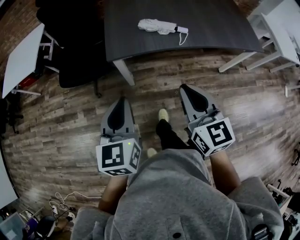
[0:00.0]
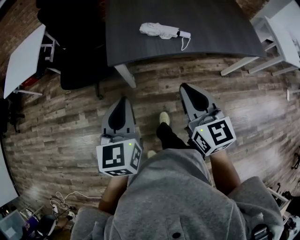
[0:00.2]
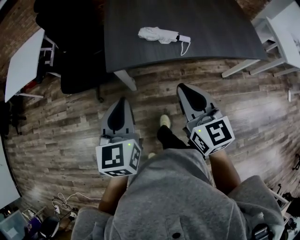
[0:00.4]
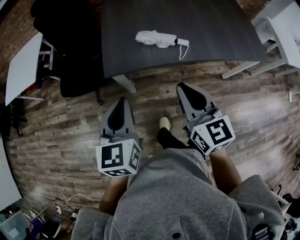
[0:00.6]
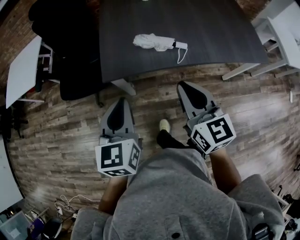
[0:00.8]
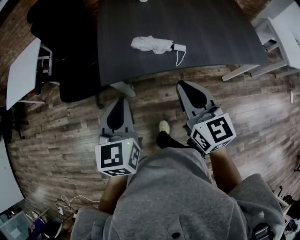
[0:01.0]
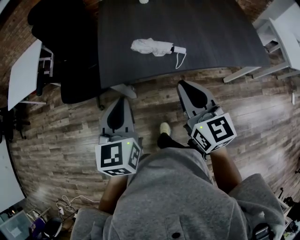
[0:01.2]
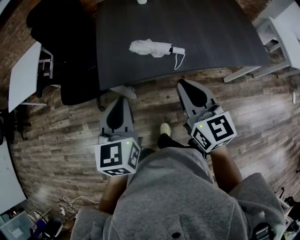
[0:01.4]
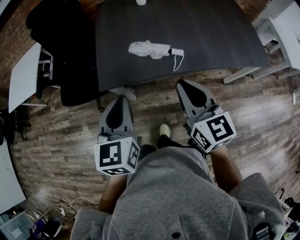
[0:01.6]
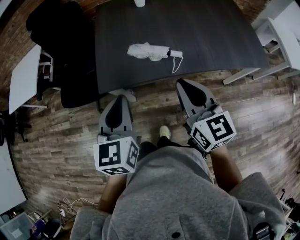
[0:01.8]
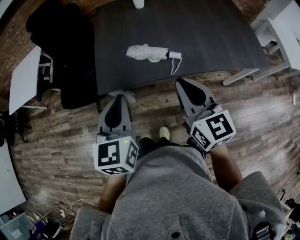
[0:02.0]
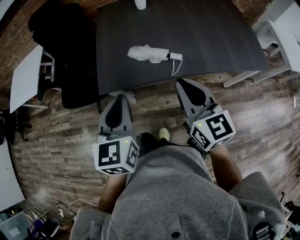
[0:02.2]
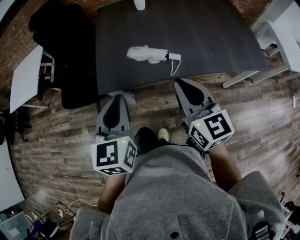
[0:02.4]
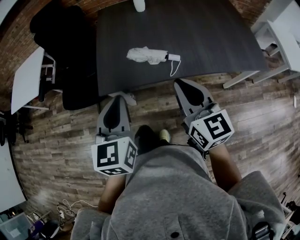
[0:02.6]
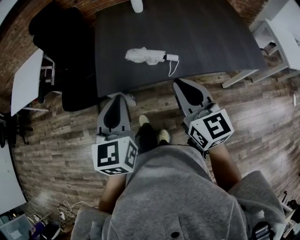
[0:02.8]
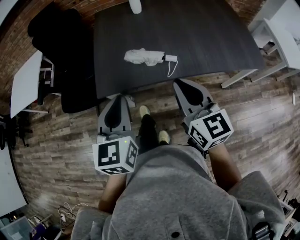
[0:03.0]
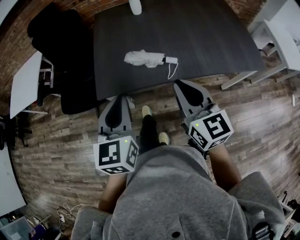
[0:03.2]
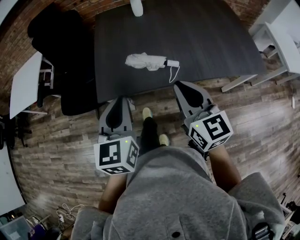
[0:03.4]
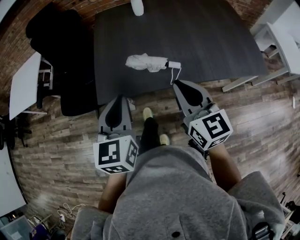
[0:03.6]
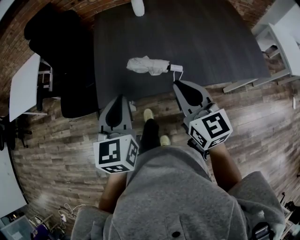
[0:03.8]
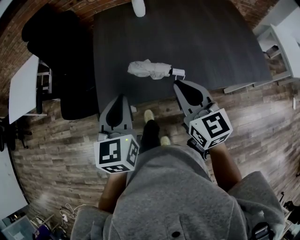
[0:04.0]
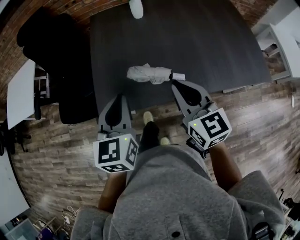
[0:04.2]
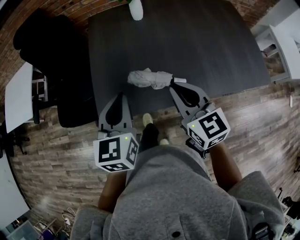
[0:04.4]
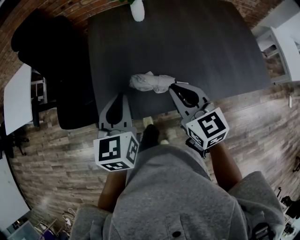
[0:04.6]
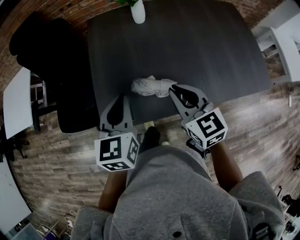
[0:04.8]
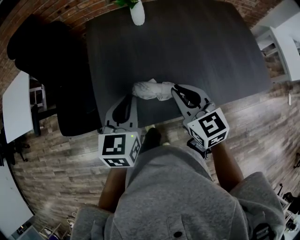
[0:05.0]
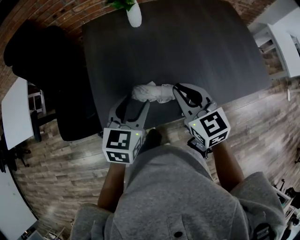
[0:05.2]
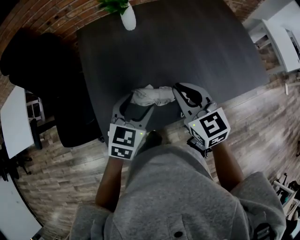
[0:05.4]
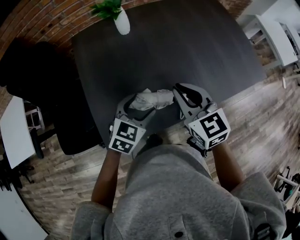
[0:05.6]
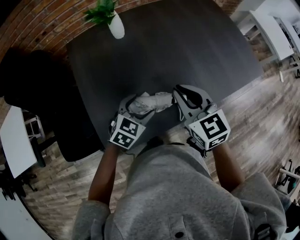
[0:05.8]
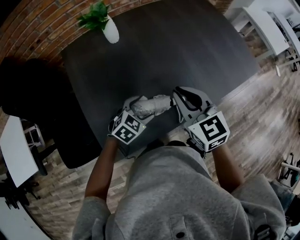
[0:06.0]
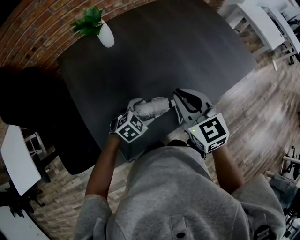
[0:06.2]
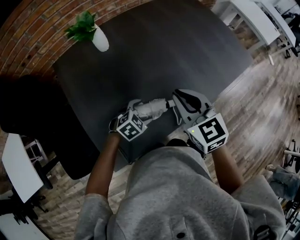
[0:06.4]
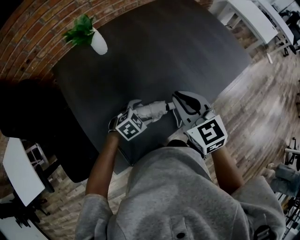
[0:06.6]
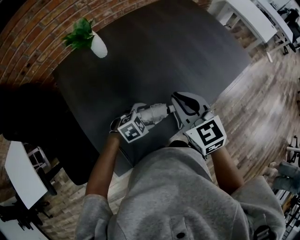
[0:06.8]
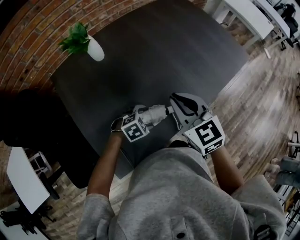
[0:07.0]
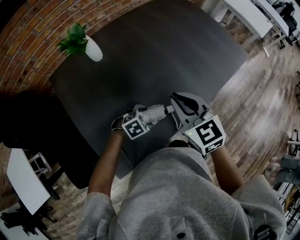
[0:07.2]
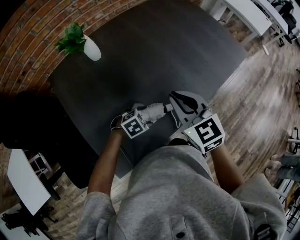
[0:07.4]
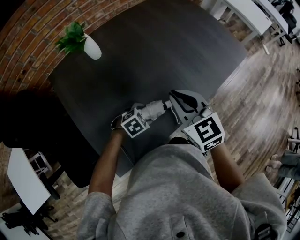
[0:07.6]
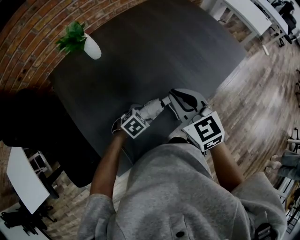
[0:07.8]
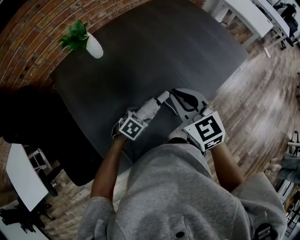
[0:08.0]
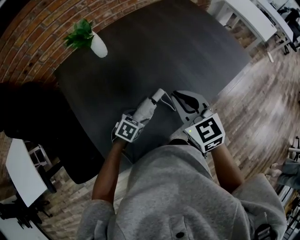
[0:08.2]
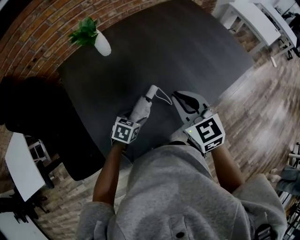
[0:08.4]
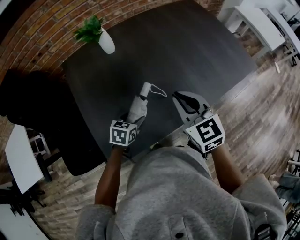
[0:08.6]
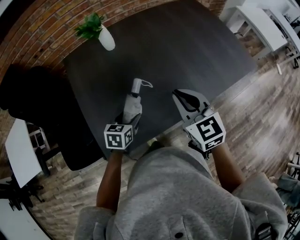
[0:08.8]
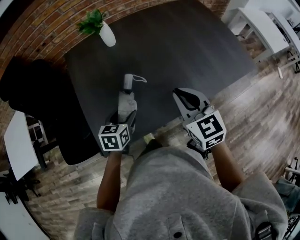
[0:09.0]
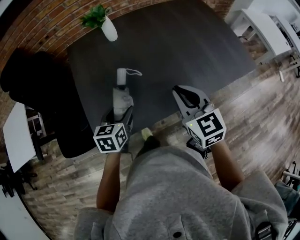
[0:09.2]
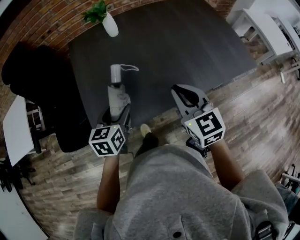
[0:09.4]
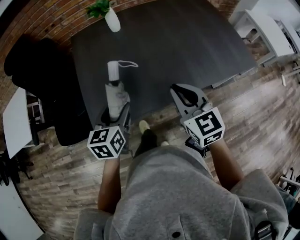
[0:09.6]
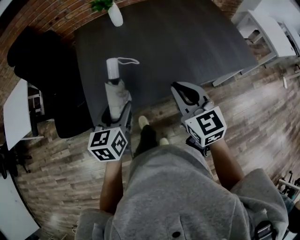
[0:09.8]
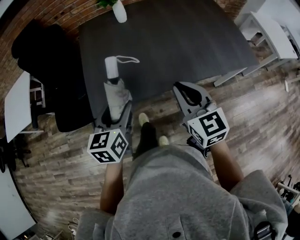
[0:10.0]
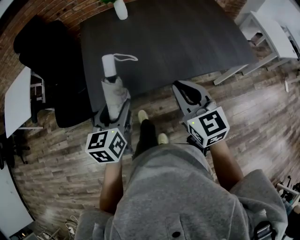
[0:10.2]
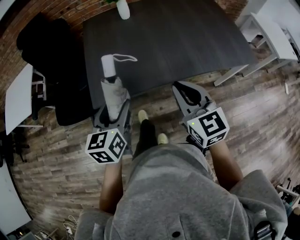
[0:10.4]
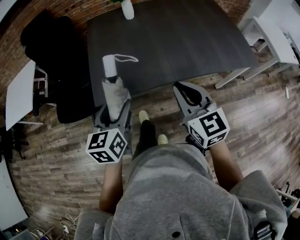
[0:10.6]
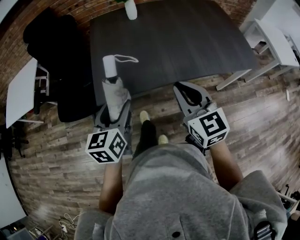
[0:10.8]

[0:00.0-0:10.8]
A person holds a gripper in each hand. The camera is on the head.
0.0 to 1.6 s: The grippers both shift forward and to the right by some 20 cm.
1.6 to 3.0 s: The grippers make only small movements.
3.0 to 4.6 s: The grippers both shift forward by some 20 cm.
4.6 to 6.2 s: The right gripper moves about 10 cm, and rotates roughly 20 degrees, while the left gripper heads downward, covering some 25 cm, changes its angle by about 80 degrees, and opens its fingers.
7.8 to 9.2 s: The left gripper heads upward, covering approximately 15 cm, and changes its angle by about 70 degrees. Meanwhile the right gripper shifts by about 10 cm.
9.2 to 10.8 s: The right gripper moves backward, roughly 20 cm. The left gripper travels backward and upward by about 25 cm, and rotates approximately 20 degrees.

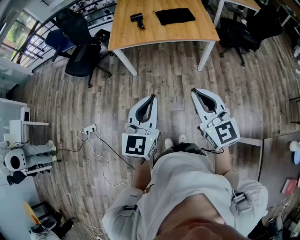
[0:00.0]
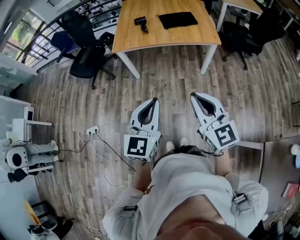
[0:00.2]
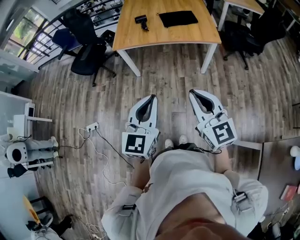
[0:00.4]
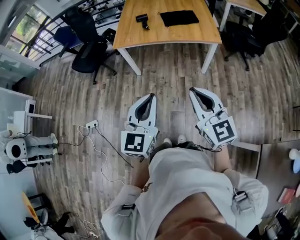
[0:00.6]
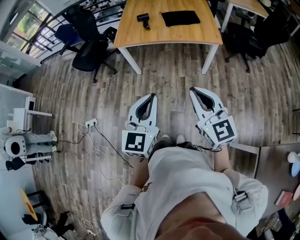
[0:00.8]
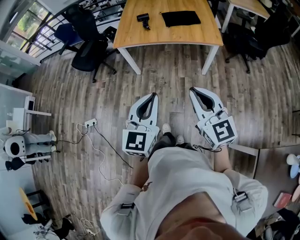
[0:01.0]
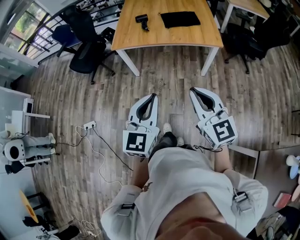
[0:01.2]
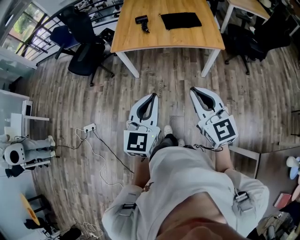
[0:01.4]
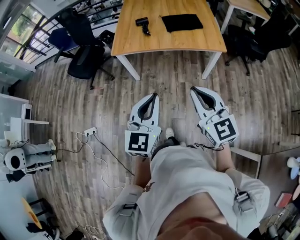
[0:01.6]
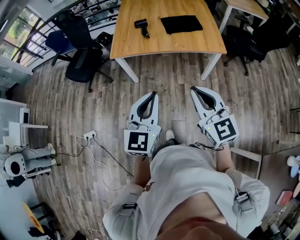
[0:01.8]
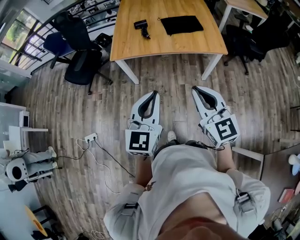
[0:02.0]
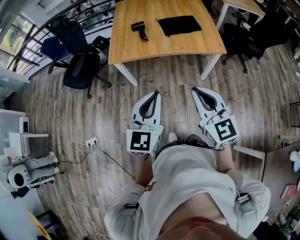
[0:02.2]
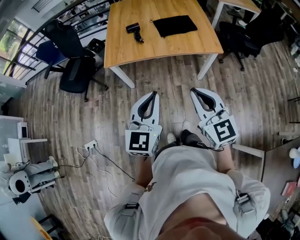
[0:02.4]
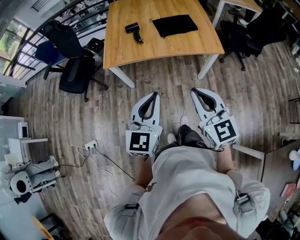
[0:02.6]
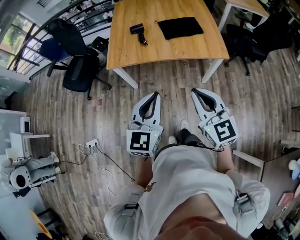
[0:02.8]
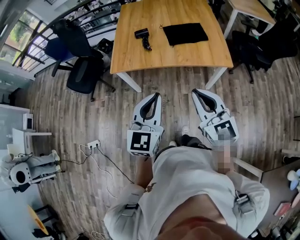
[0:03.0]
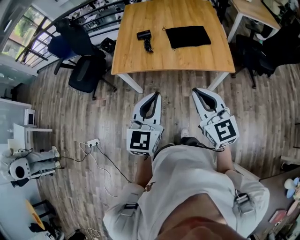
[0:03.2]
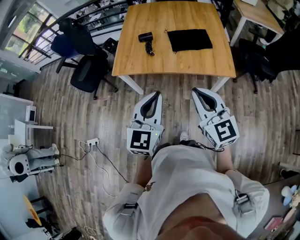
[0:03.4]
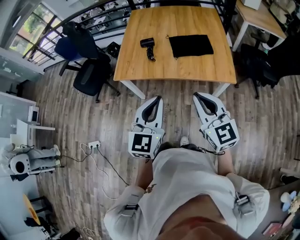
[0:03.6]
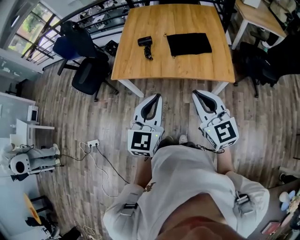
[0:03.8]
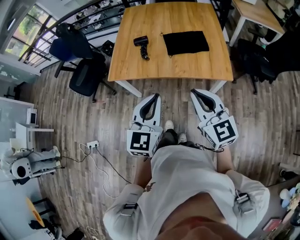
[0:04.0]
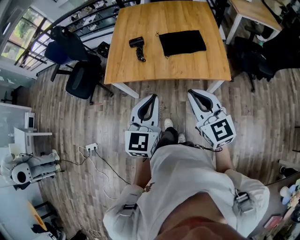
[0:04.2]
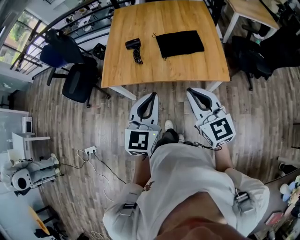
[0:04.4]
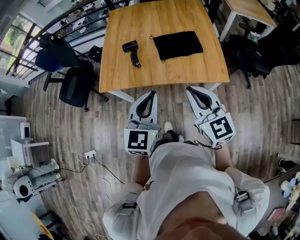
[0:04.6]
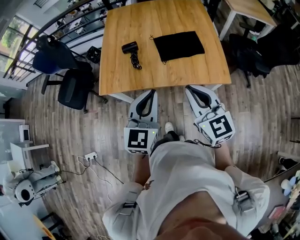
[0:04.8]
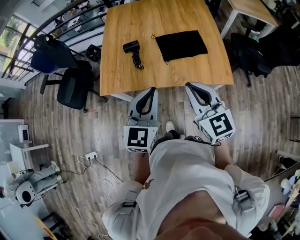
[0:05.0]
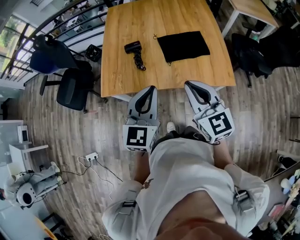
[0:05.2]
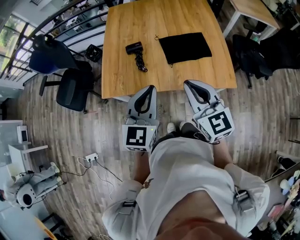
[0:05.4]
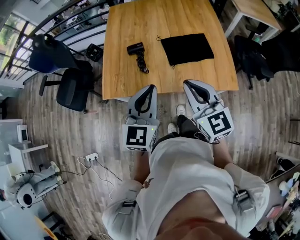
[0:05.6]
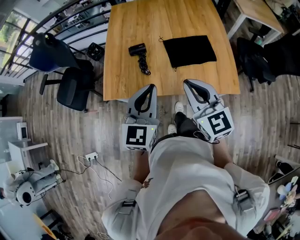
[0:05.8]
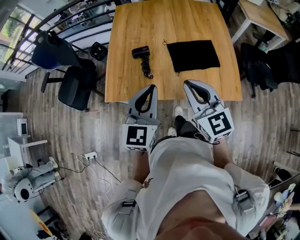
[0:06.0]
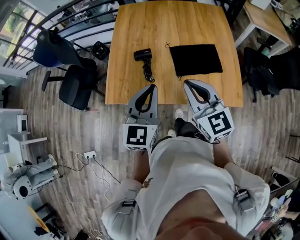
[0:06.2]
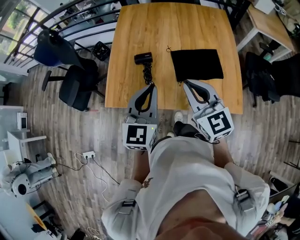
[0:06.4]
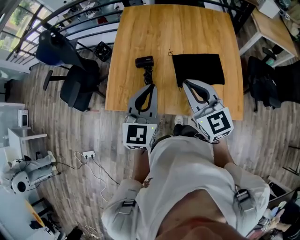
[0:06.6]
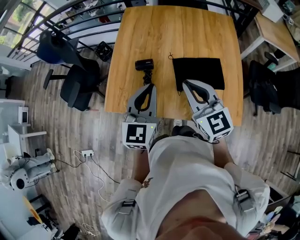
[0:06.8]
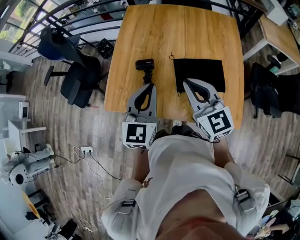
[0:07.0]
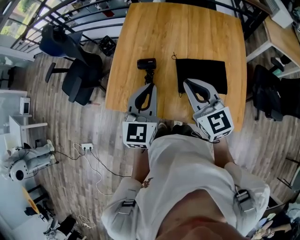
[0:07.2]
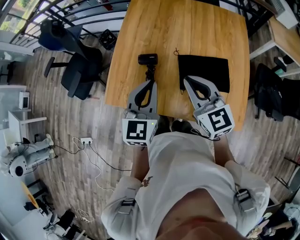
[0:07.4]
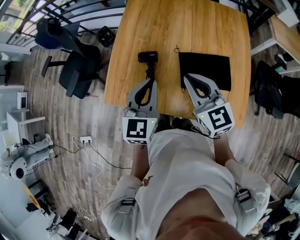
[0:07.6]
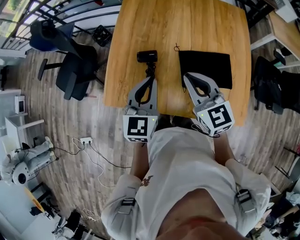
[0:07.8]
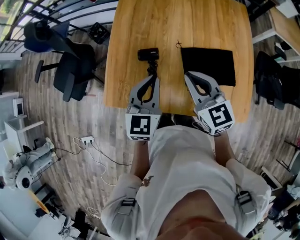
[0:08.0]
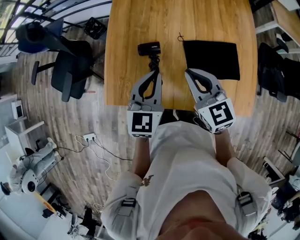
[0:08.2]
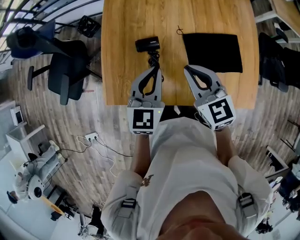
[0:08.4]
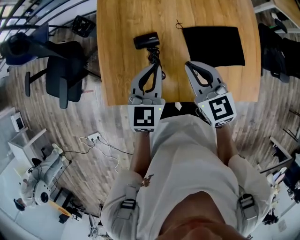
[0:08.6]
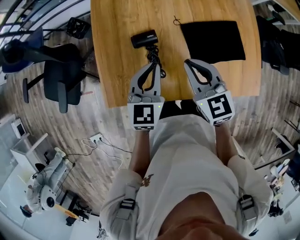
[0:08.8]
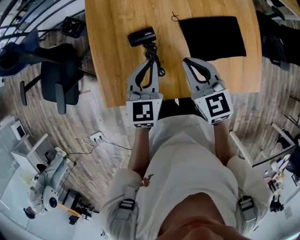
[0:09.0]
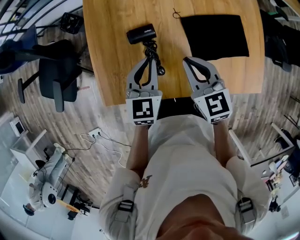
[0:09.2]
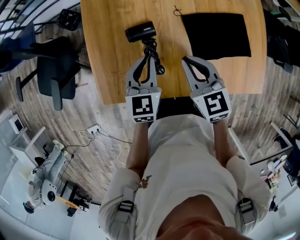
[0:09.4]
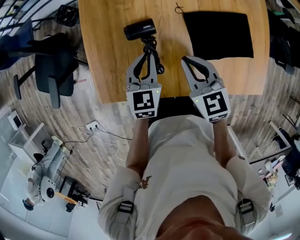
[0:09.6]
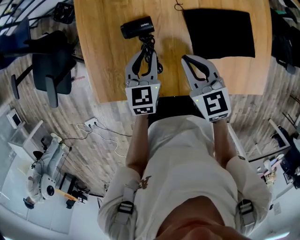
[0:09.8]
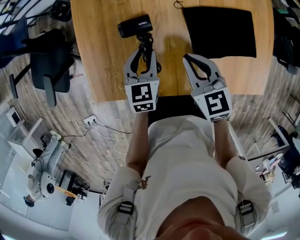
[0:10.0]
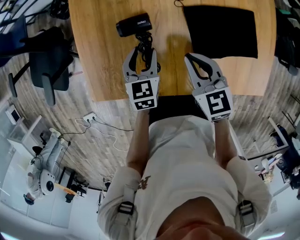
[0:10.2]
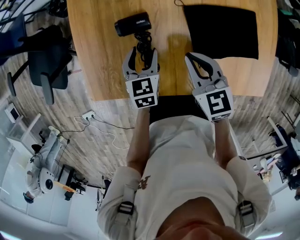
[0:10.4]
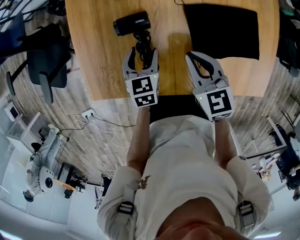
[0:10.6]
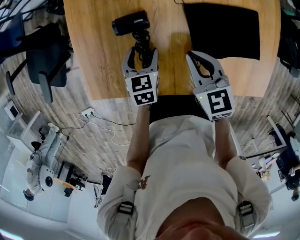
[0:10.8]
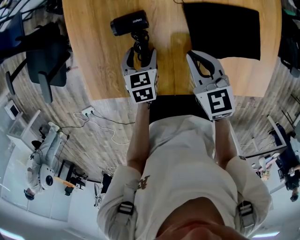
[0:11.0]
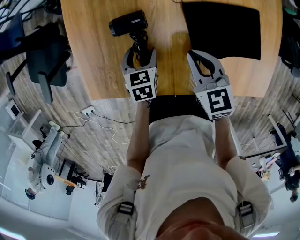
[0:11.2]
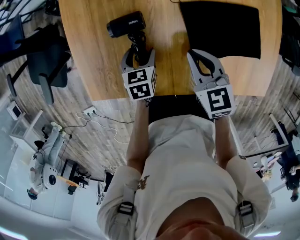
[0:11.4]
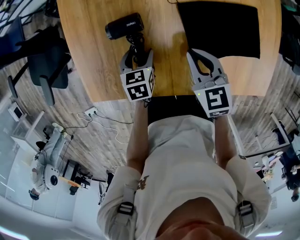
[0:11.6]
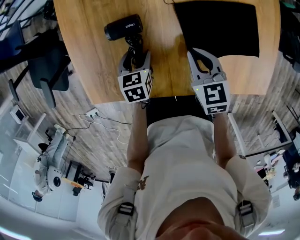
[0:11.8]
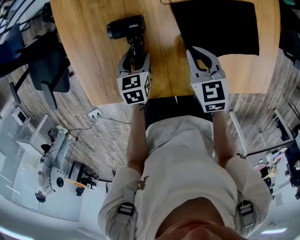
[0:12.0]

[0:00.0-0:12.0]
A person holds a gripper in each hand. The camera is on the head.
0.0 to 1.6 s: Both grippers move forward, approximately 10 cm.
1.6 to 3.0 s: The two grippers go approximately 15 cm forward.
3.0 to 4.4 s: Both grippers travel together forward and to the right, about 15 cm.
4.4 to 6.0 s: Both grippers travel together forward, approximately 20 cm.
6.0 to 7.6 s: Both grippers travel together forward, about 15 cm.
7.6 to 9.0 s: The left gripper moves downward and forward, about 15 cm; the right gripper moves downward and to the left, some 15 cm, and rotates some 20 degrees.
9.0 to 10.4 s: The left gripper goes roughly 15 cm downward, turns by some 20 degrees, and opens; the right gripper is displaced downward by some 10 cm.
10.4 to 12.0 s: The left gripper heads downward, covering approximately 5 cm. Meanwhile the right gripper shifts approximately 10 cm downward and to the right.

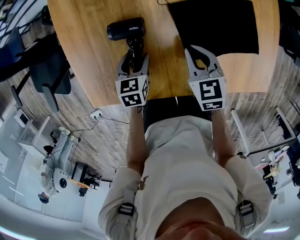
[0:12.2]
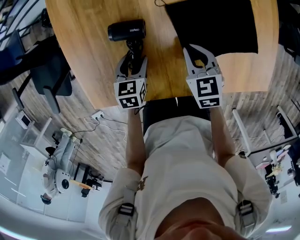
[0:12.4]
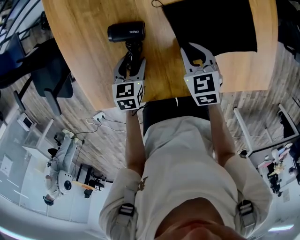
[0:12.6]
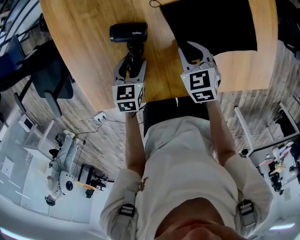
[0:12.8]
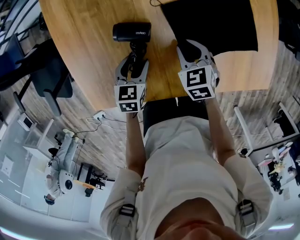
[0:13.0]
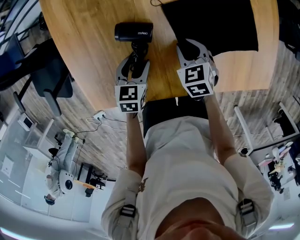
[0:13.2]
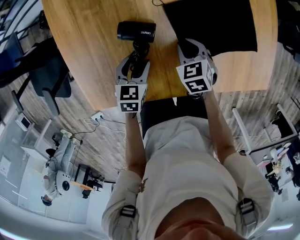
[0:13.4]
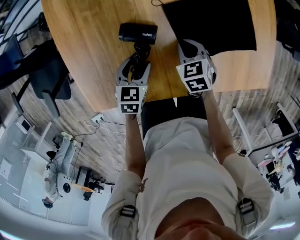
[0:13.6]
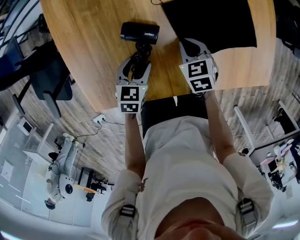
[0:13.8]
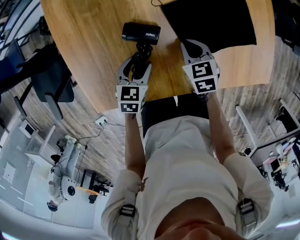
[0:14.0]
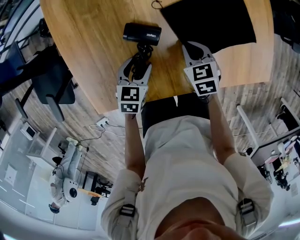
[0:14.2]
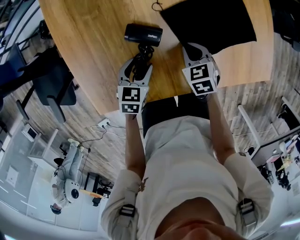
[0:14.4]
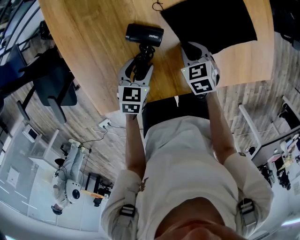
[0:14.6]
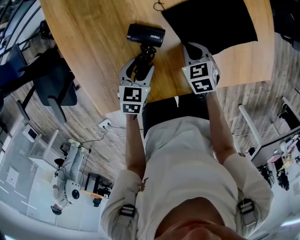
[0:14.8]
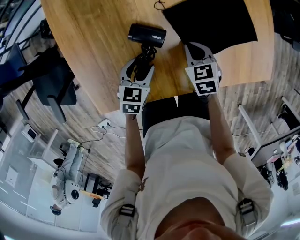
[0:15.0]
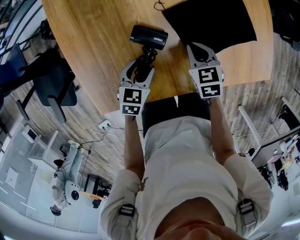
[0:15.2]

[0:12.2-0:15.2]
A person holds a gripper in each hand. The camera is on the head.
12.2 to 13.8 s: The right gripper shifts about 5 cm downward.
13.8 to 15.2 s: The grippers make only small movements.
